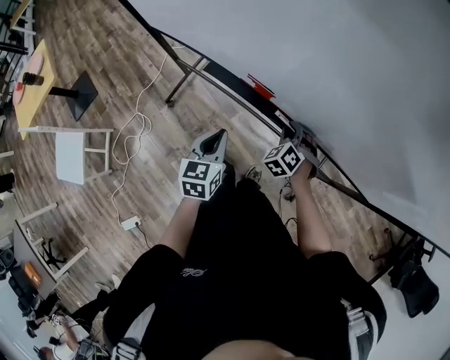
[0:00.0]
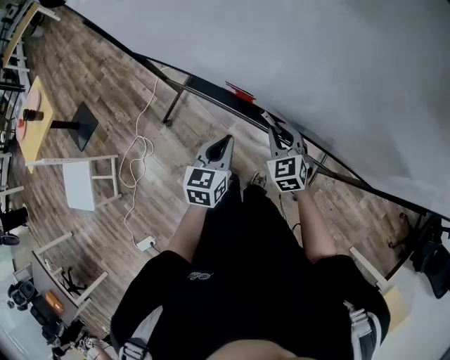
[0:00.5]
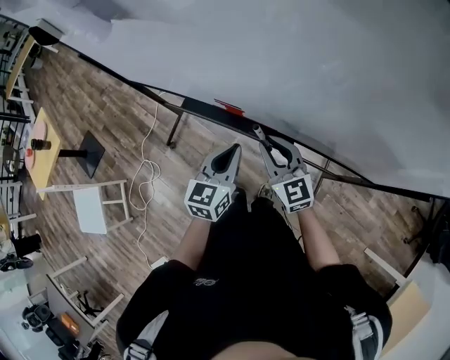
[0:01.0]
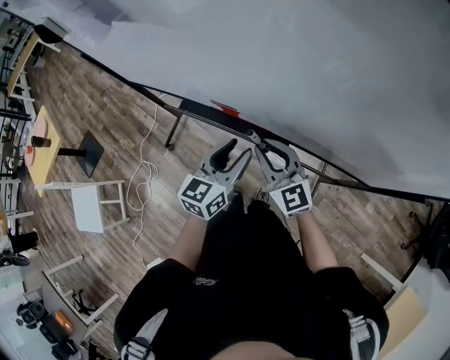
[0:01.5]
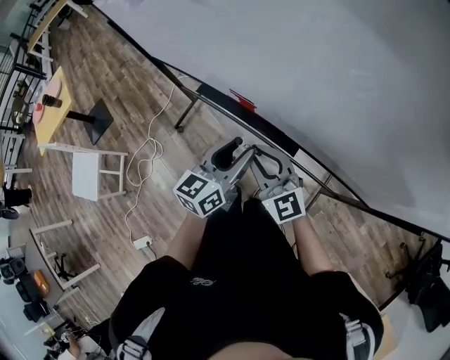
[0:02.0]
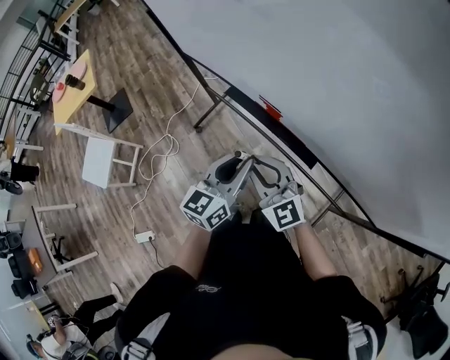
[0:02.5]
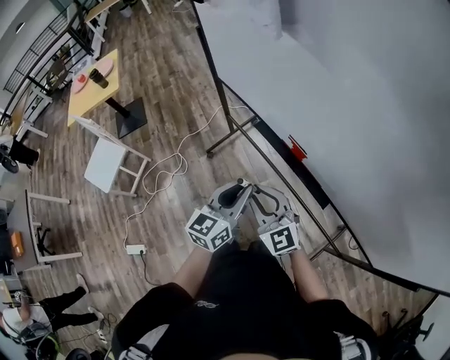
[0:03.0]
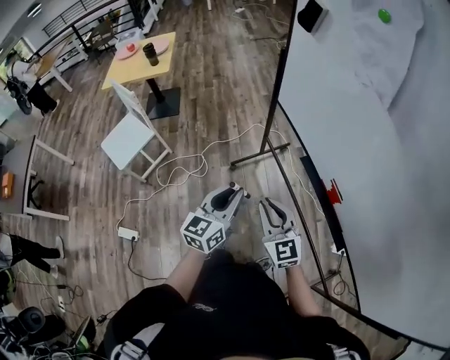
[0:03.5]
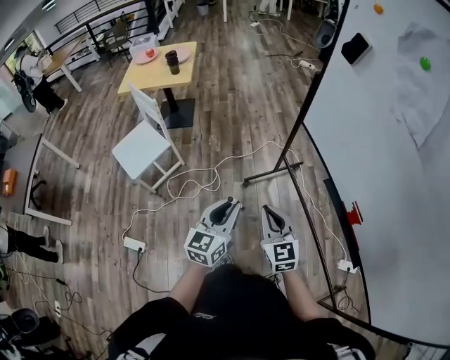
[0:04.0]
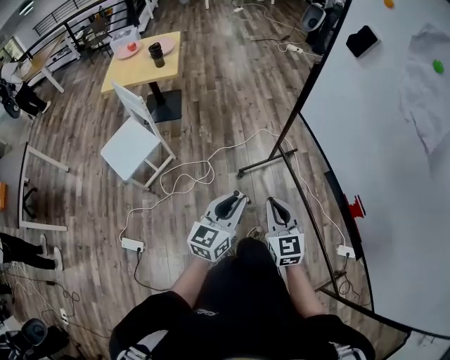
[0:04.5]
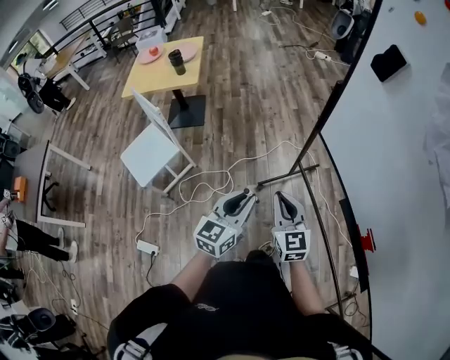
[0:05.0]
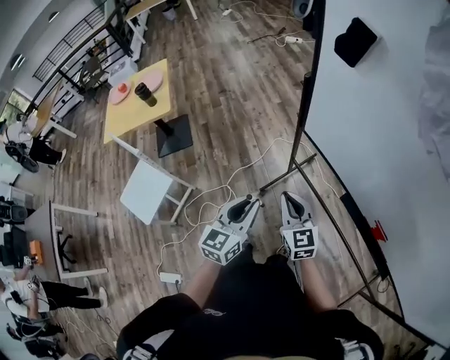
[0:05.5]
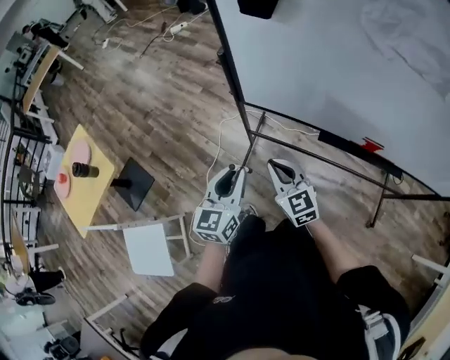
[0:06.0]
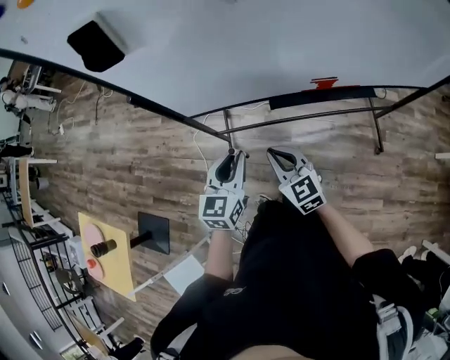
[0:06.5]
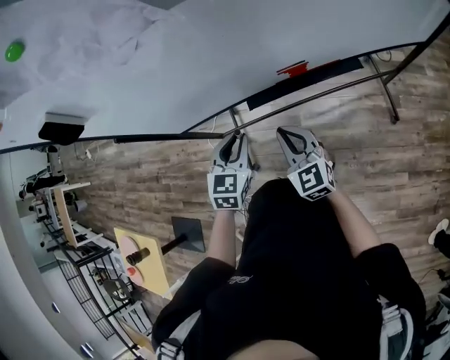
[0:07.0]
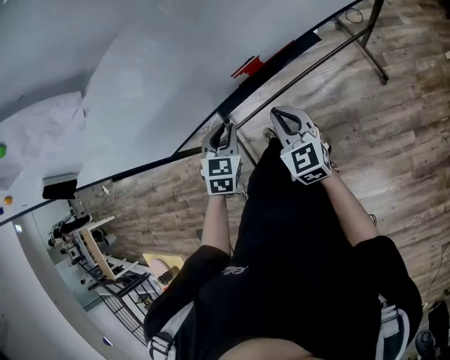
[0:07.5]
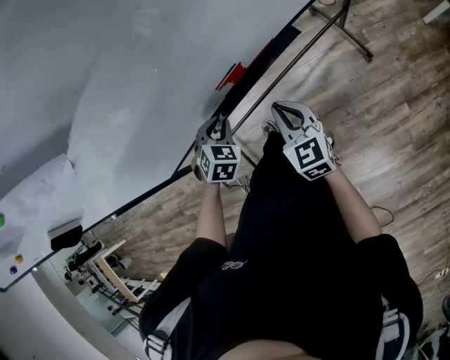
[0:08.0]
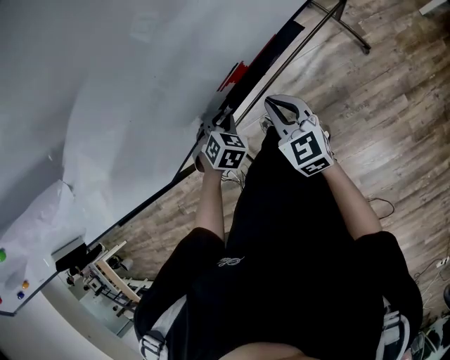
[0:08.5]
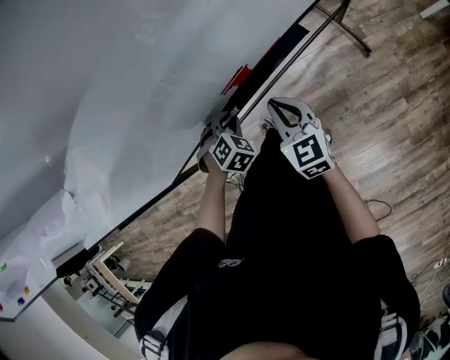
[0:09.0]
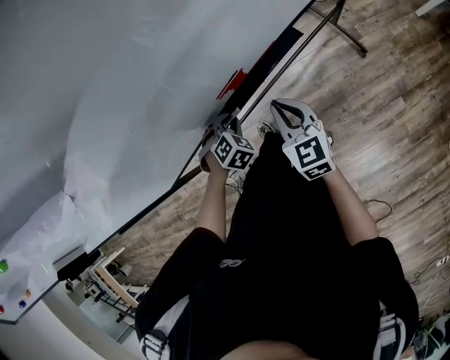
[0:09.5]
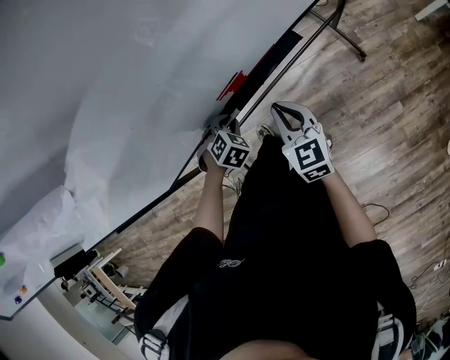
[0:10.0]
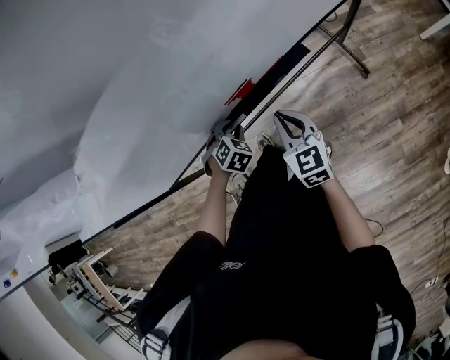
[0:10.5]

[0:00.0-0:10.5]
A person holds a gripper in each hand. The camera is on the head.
0:00.0 to 0:02.0: The left gripper moves to the right and upward, approximately 20 cm, changes its angle by about 30 degrees, and opens up, while the right gripper heads upward and backward, covering some 20 cm, and tips its fingers upward by roughly 50 degrees.
0:02.0 to 0:04.0: The pair of grippers is taken roughly 50 cm. The left gripper changes its angle by roughly 40 degrees, and closes.
0:04.0 to 0:06.5: The right gripper moves about 25 cm, and rotates approximately 60 degrees; the left gripper ends up some 35 cm from where it was, and rotates approximately 70 degrees.
0:06.5 to 0:08.5: The left gripper heads to the right, forward and downward, covering approximately 30 cm, and rolls clockwise, seen from behind, by some 60 degrees. The right gripper heads to the right and forward, covering approximately 30 cm, and swivels roughly 40 degrees.
0:08.5 to 0:10.5: The grippers move only a little.

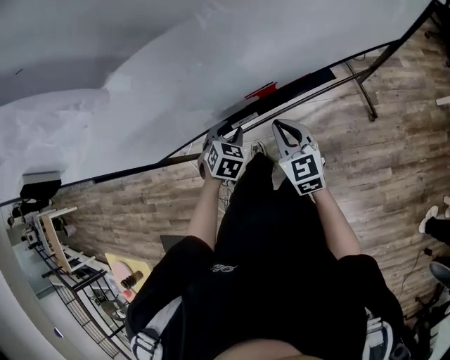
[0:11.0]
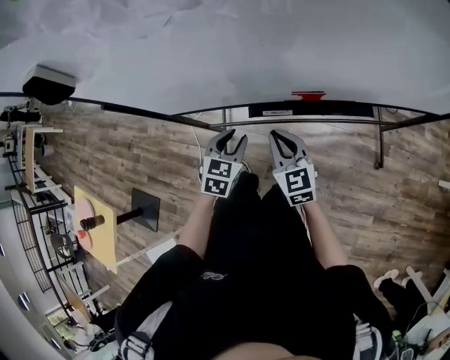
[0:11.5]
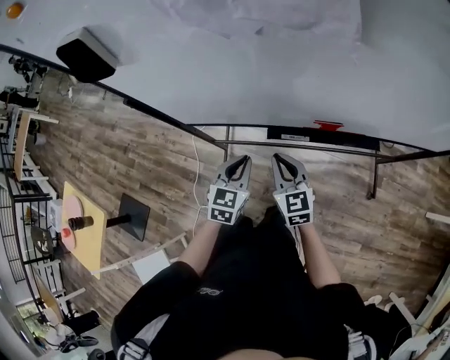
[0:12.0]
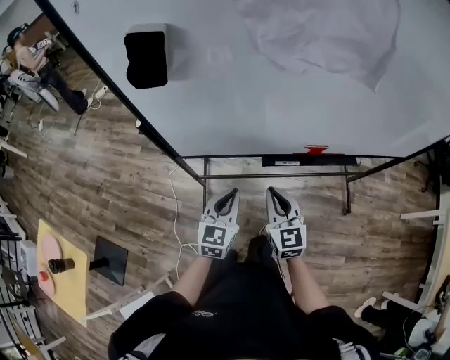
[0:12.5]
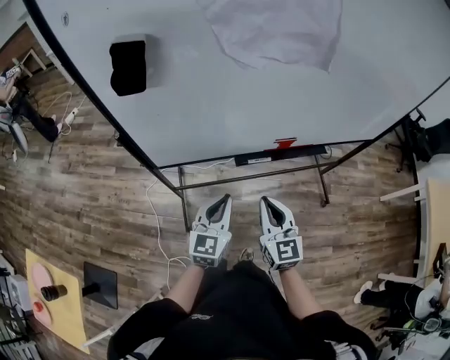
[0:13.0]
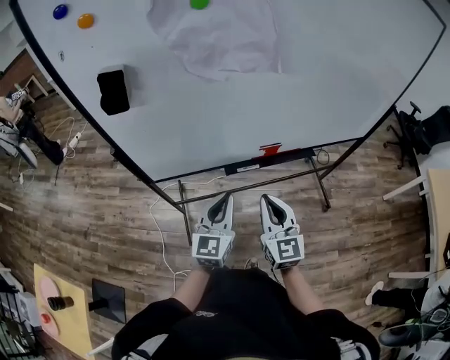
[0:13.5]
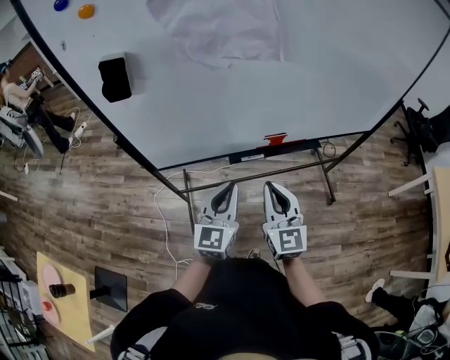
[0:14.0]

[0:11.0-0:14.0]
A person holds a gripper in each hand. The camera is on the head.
0:11.0 to 0:12.5: The right gripper is displaced to the left by some 20 cm. The left gripper shifts about 25 cm to the left, upward and backward, tilts its fingers approximately 40 degrees upward, and closes.
0:12.5 to 0:14.0: The right gripper heads upward, to the right and backward, covering about 15 cm, while the left gripper is displaced upward and to the right by some 15 cm.

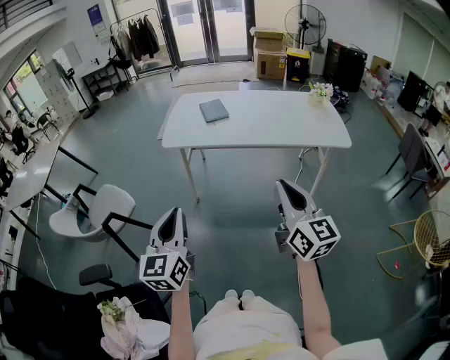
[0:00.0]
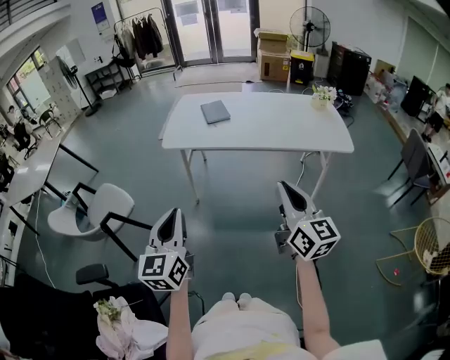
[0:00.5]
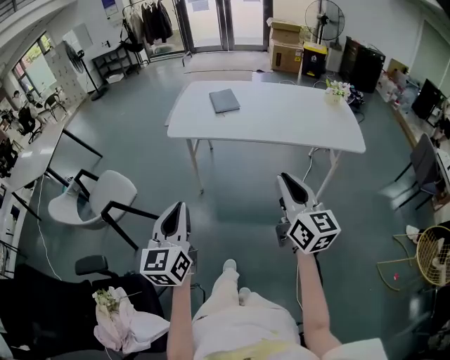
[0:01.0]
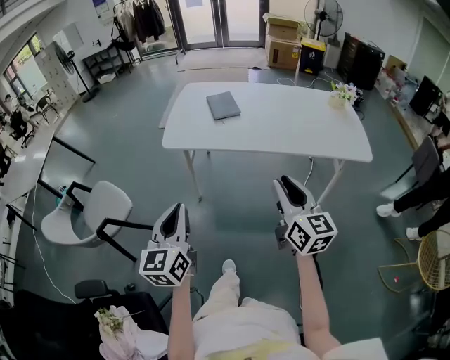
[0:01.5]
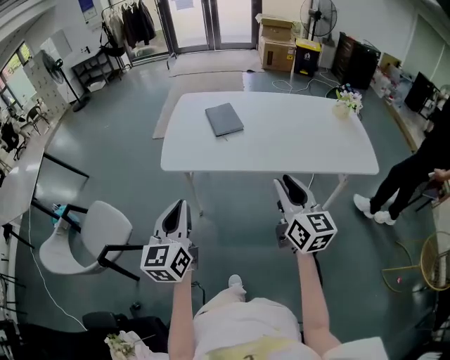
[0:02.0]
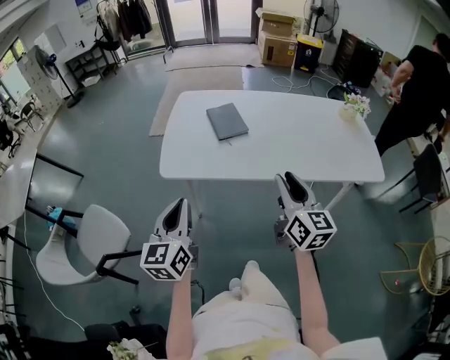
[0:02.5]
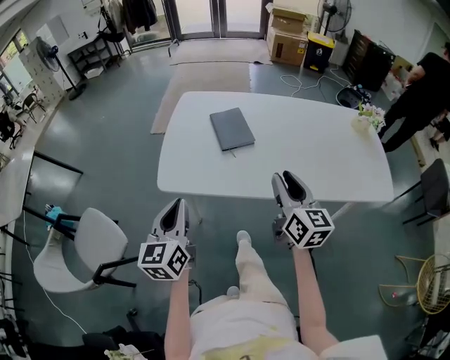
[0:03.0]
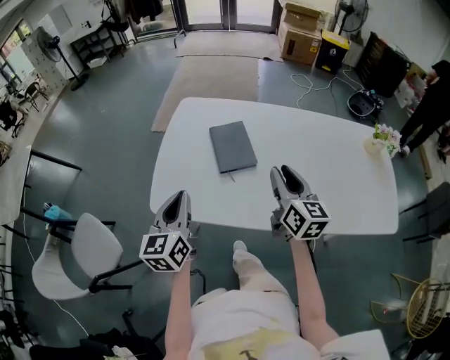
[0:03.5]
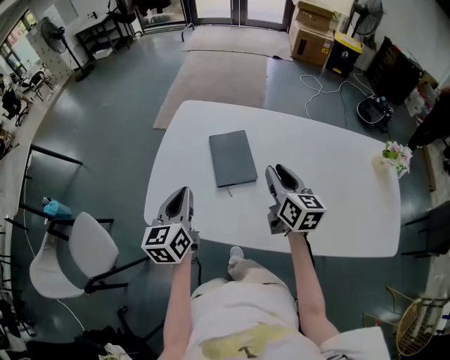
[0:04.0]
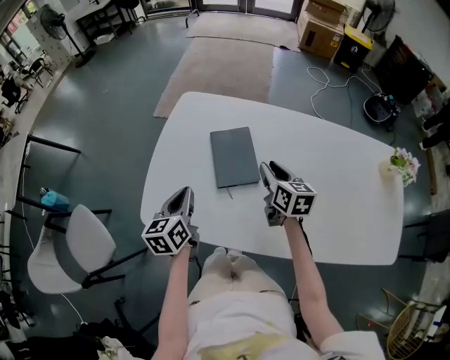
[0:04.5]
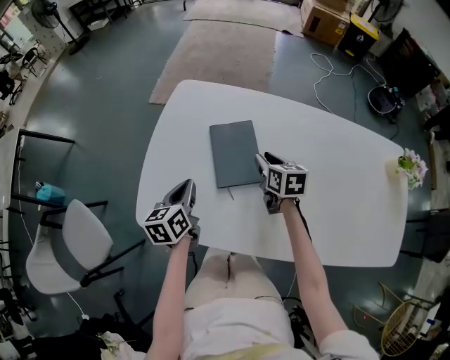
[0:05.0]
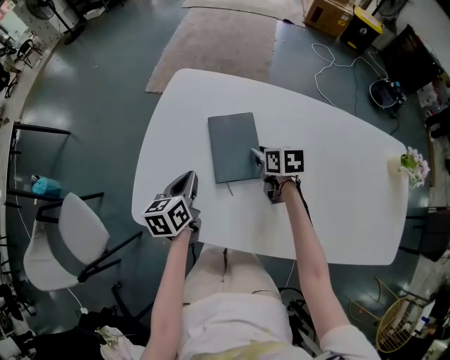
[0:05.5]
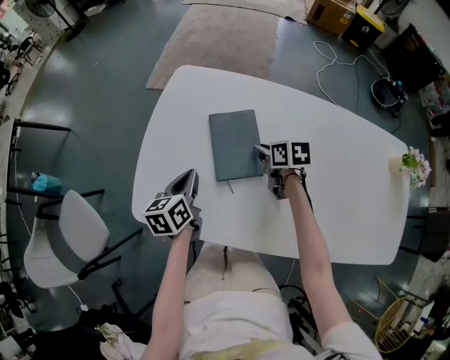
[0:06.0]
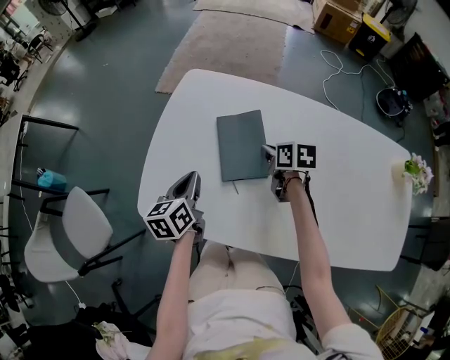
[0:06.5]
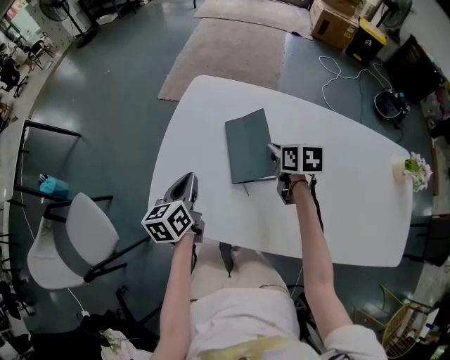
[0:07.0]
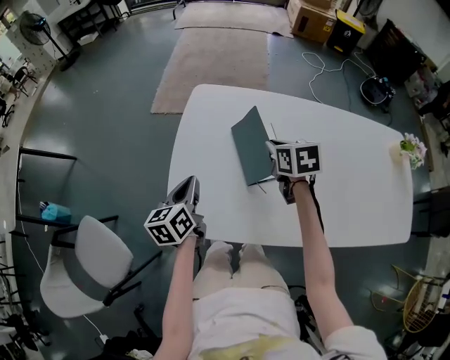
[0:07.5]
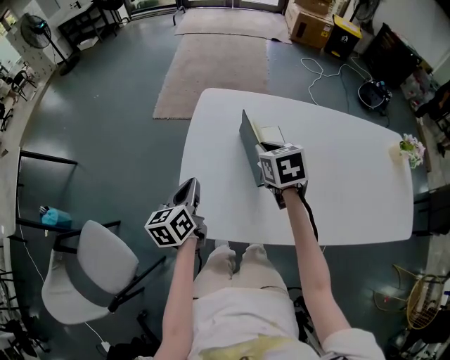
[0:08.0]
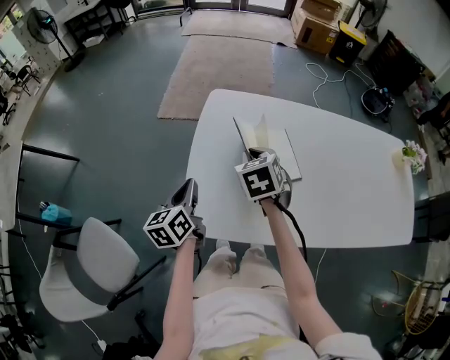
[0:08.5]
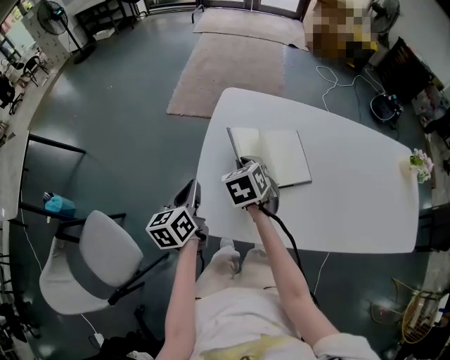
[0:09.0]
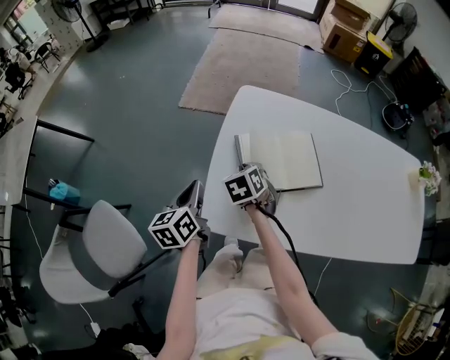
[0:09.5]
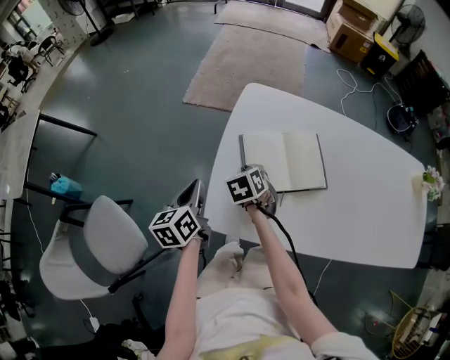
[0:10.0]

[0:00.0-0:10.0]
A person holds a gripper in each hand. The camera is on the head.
0:00.0 to 0:02.0: The two grippers go about 30 cm forward. The right gripper opens.
0:02.0 to 0:04.0: The grippers both shift forward by roughly 40 cm.
0:04.0 to 0:06.0: The two grippers go about 20 cm downward and forward. The right gripper angles its fingers downward, by about 30 degrees; the left gripper turns by roughly 20 degrees.
0:06.0 to 0:08.0: The right gripper shifts some 20 cm upward and to the left, and rotates some 30 degrees, while the left gripper goes roughly 15 cm to the left and upward.
0:08.0 to 0:10.0: The left gripper is displaced to the left by some 10 cm. The right gripper goes about 20 cm to the left and downward.

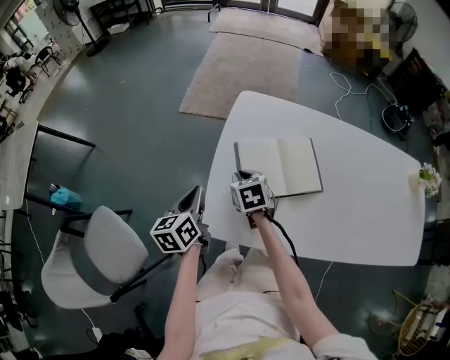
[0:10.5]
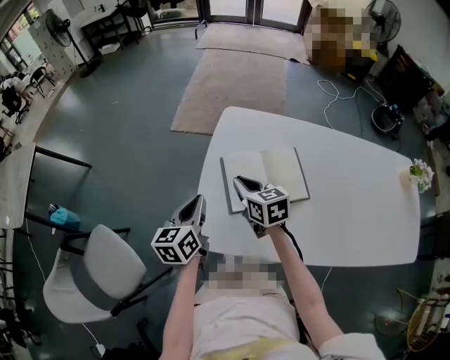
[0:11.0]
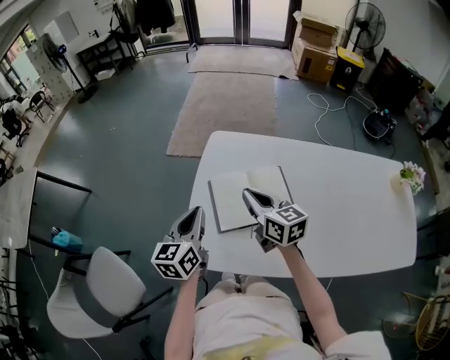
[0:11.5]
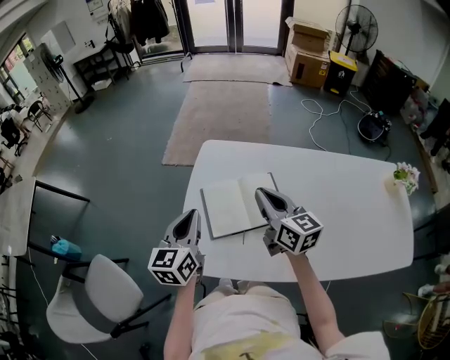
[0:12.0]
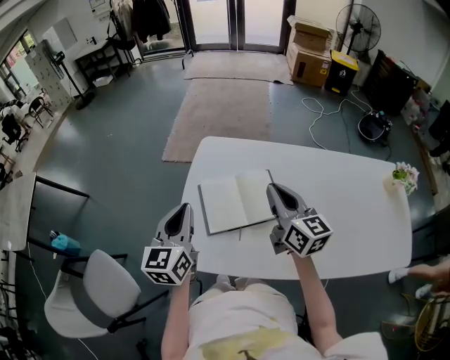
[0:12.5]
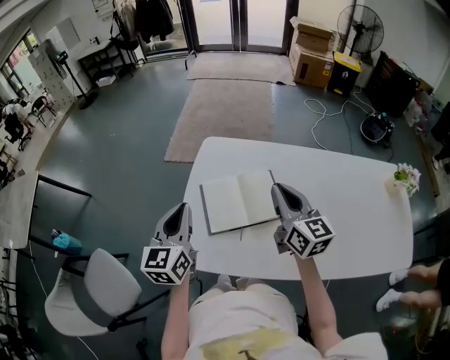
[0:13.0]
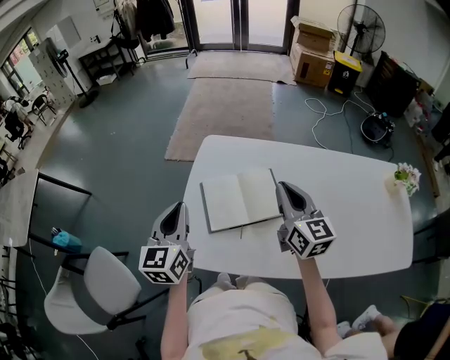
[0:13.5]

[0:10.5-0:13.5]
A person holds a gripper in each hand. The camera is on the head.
0:10.5 to 0:12.0: The left gripper is displaced upward and to the right by roughly 20 cm, and rotates approximately 20 degrees. The right gripper goes approximately 30 cm upward and to the right, and points its fingers roughly 40 degrees further upward.
0:12.0 to 0:13.5: The right gripper travels to the right by some 5 cm.
